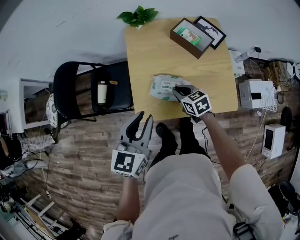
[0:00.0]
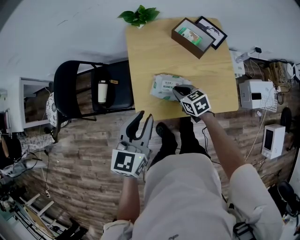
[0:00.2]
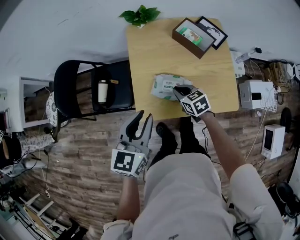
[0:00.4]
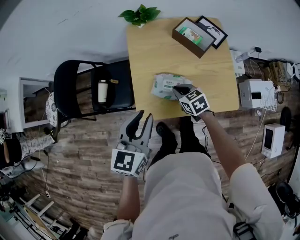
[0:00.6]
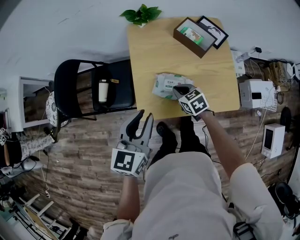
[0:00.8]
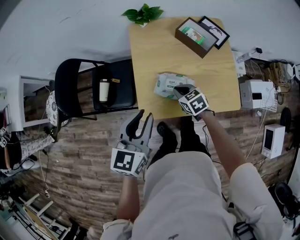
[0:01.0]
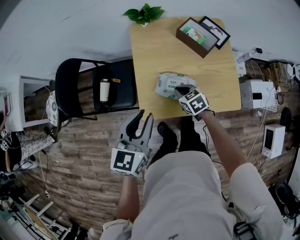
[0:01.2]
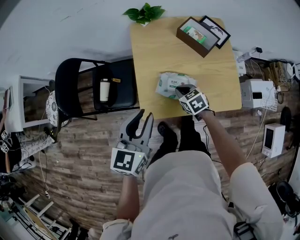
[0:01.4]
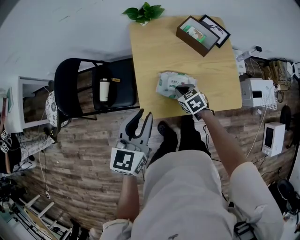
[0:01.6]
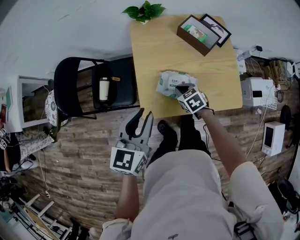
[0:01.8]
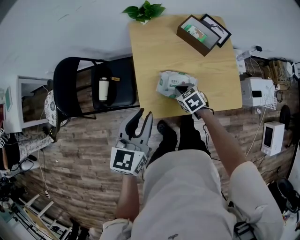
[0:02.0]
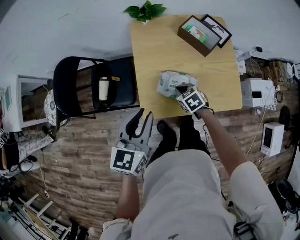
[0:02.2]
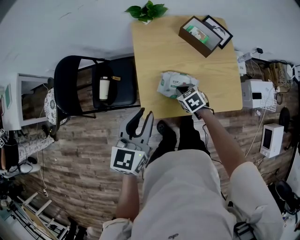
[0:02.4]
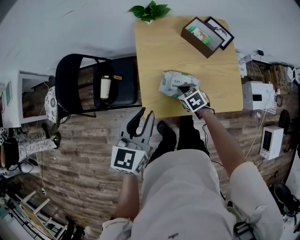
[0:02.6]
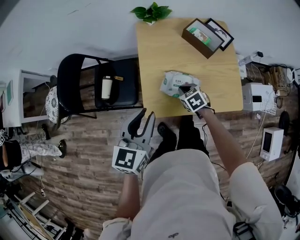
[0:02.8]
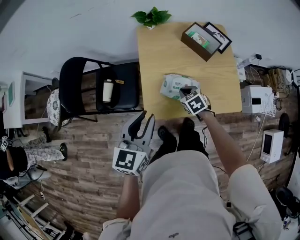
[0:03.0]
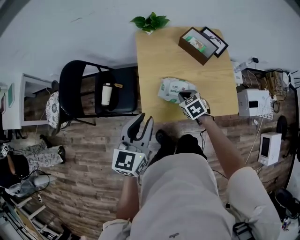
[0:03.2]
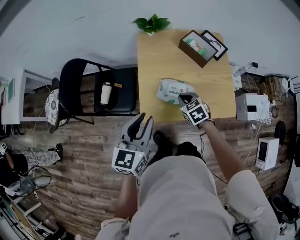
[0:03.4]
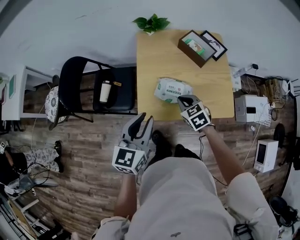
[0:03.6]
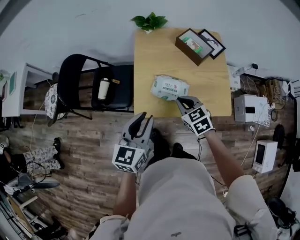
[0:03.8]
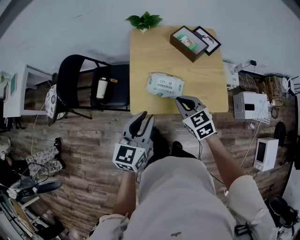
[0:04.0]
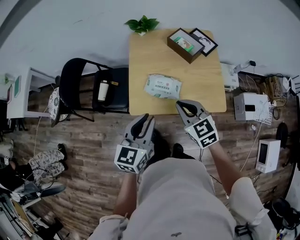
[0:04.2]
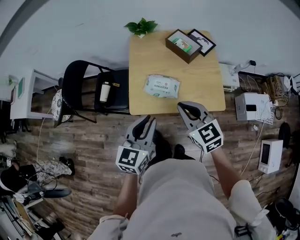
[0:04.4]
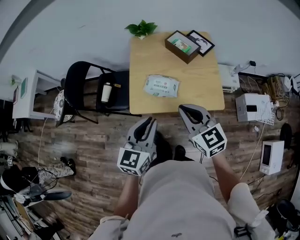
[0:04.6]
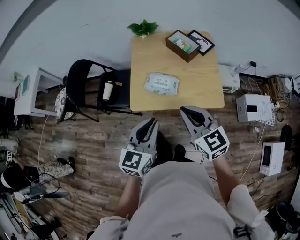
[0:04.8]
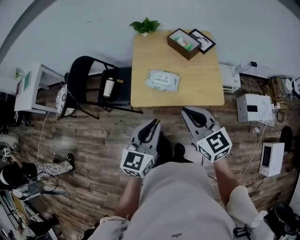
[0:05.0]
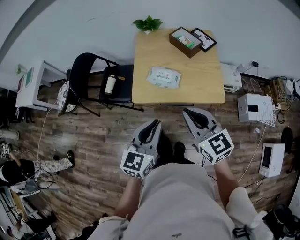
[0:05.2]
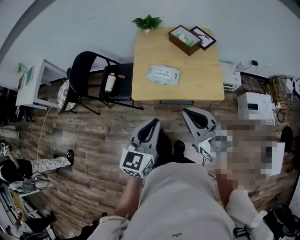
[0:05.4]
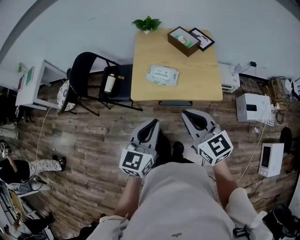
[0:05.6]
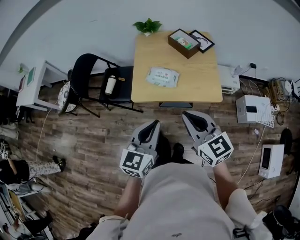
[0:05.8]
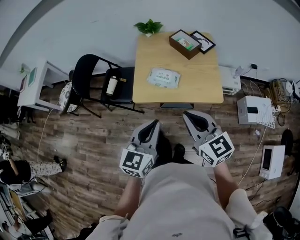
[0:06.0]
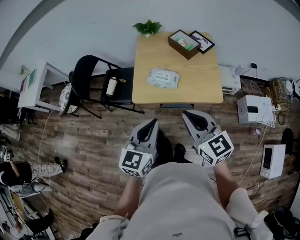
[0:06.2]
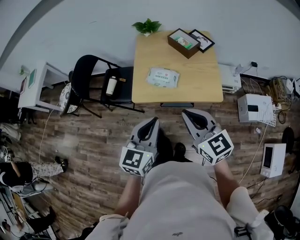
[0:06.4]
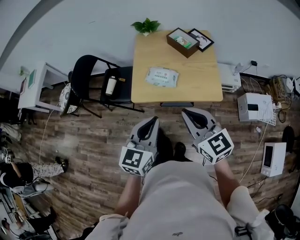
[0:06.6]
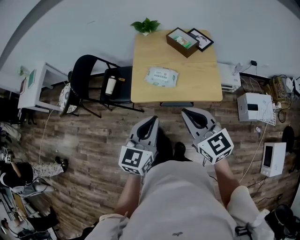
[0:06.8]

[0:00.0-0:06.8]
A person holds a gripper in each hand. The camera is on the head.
0:00.0 to 0:01.4: The grippers stay close to where they were, moving slightly.
0:01.4 to 0:02.8: There are only small adjustments of the grippers.
0:02.8 to 0:04.0: The left gripper is displaced to the right and backward by about 10 cm. Meanwhile the right gripper goes approximately 20 cm upward and backward, and swivels roughly 20 degrees.
0:04.0 to 0:05.4: The right gripper is displaced backward and upward by approximately 25 cm, and changes its angle by roughly 20 degrees. The left gripper heads backward, covering about 15 cm.
0:05.4 to 0:06.8: The grippers stay close to where they were, moving slightly.

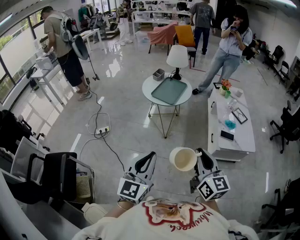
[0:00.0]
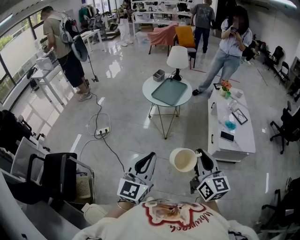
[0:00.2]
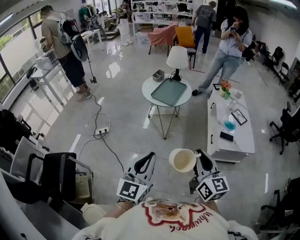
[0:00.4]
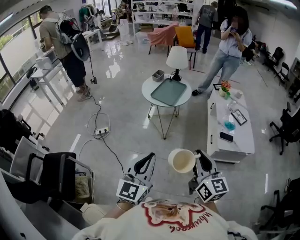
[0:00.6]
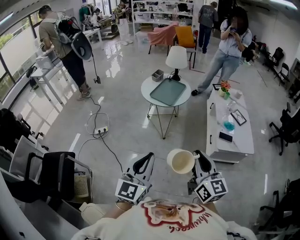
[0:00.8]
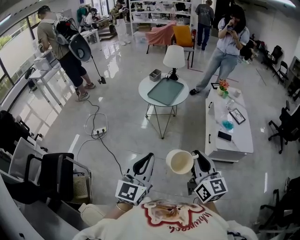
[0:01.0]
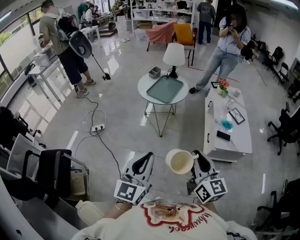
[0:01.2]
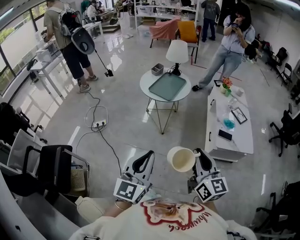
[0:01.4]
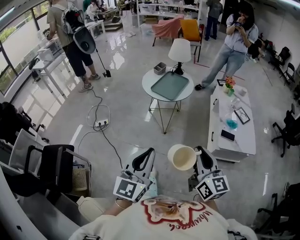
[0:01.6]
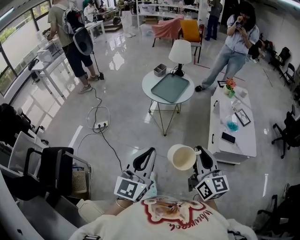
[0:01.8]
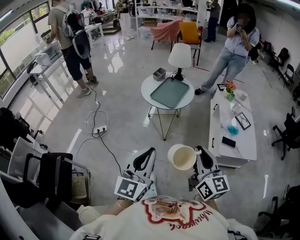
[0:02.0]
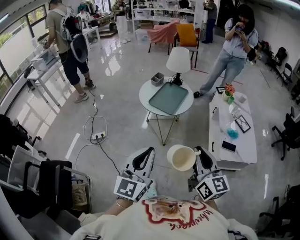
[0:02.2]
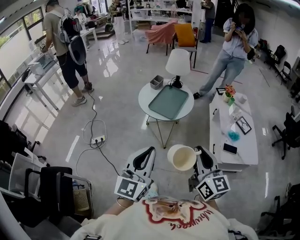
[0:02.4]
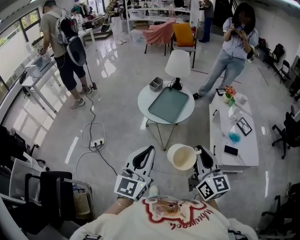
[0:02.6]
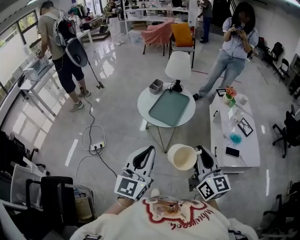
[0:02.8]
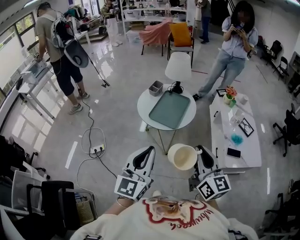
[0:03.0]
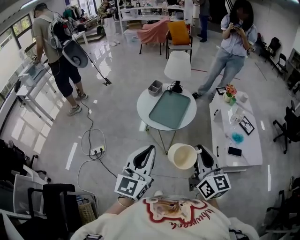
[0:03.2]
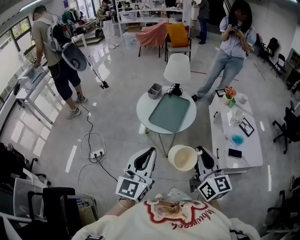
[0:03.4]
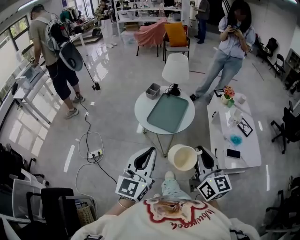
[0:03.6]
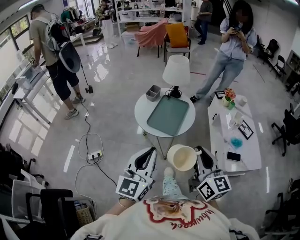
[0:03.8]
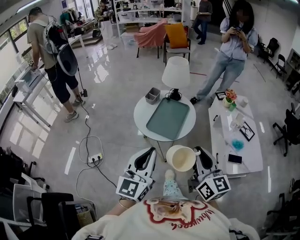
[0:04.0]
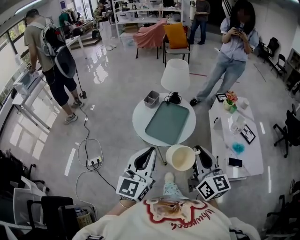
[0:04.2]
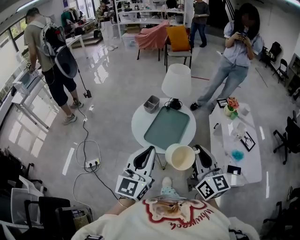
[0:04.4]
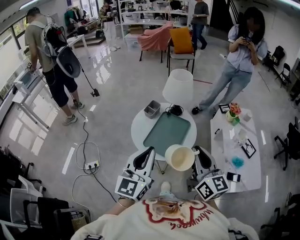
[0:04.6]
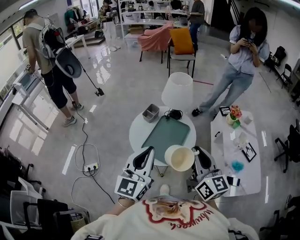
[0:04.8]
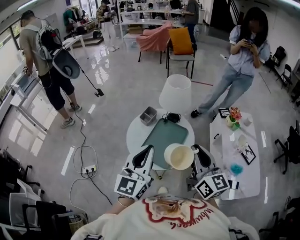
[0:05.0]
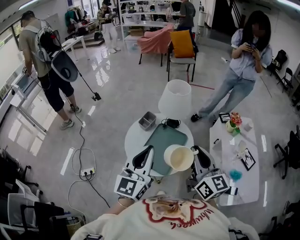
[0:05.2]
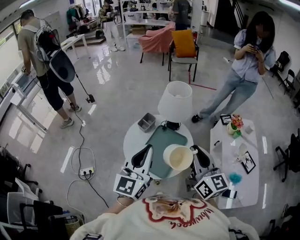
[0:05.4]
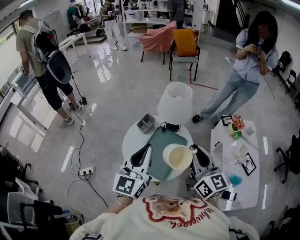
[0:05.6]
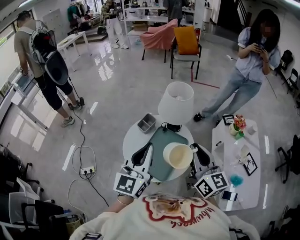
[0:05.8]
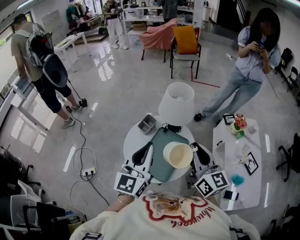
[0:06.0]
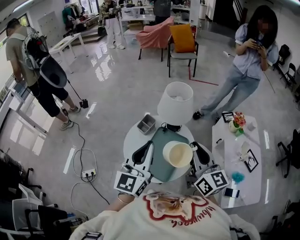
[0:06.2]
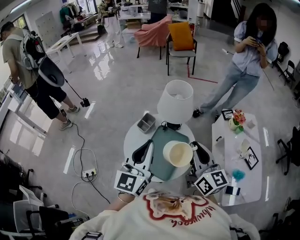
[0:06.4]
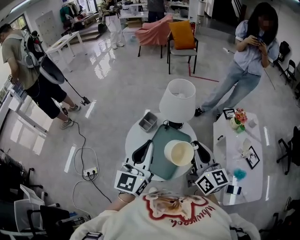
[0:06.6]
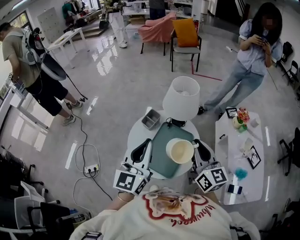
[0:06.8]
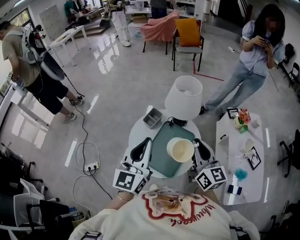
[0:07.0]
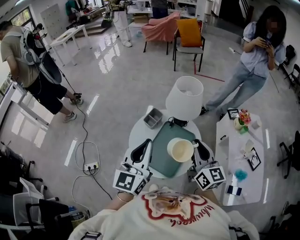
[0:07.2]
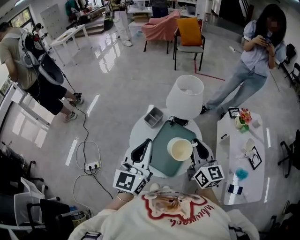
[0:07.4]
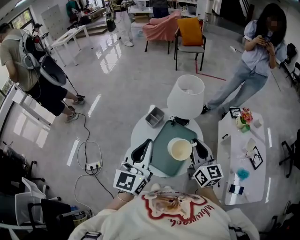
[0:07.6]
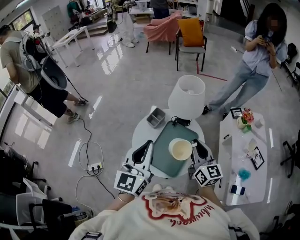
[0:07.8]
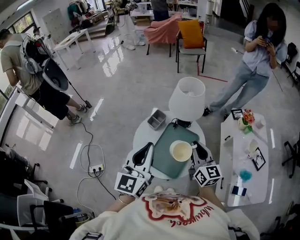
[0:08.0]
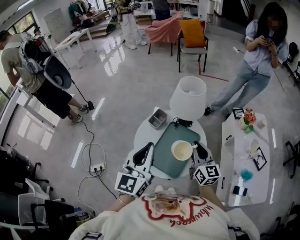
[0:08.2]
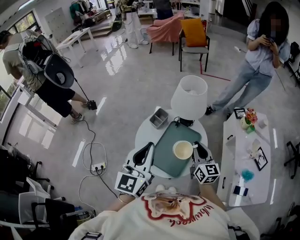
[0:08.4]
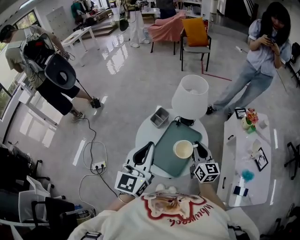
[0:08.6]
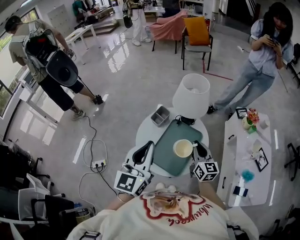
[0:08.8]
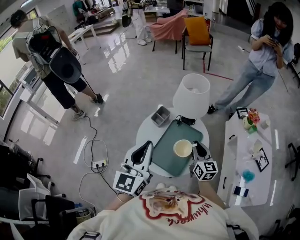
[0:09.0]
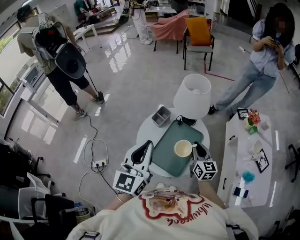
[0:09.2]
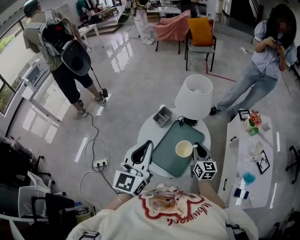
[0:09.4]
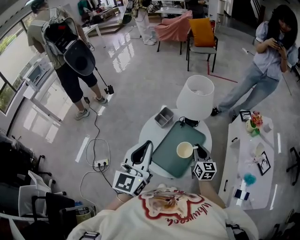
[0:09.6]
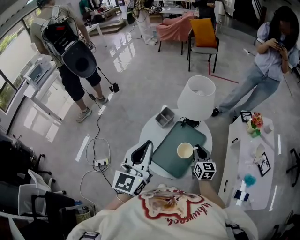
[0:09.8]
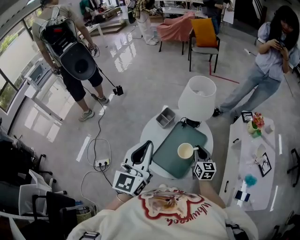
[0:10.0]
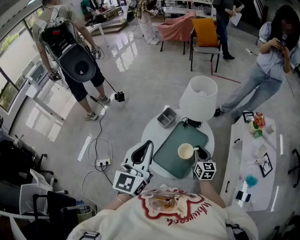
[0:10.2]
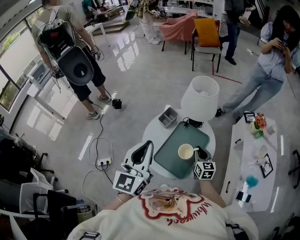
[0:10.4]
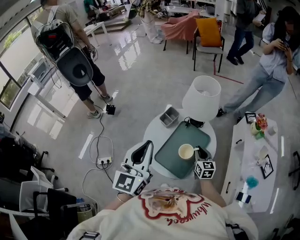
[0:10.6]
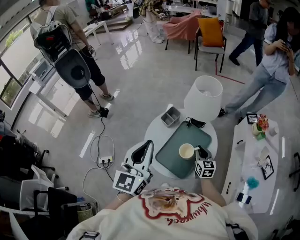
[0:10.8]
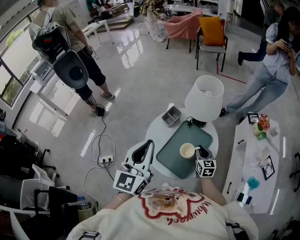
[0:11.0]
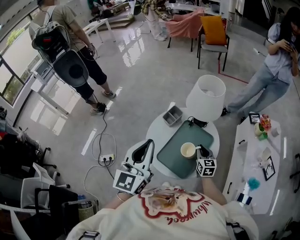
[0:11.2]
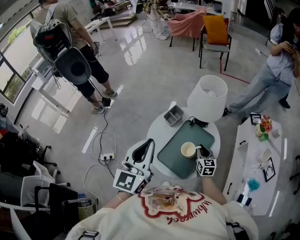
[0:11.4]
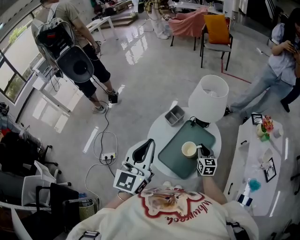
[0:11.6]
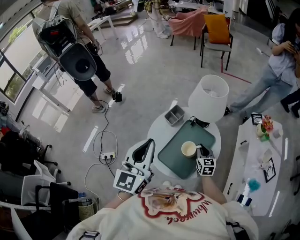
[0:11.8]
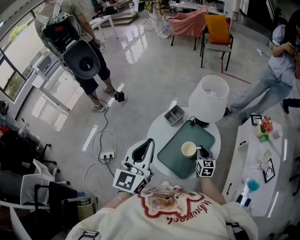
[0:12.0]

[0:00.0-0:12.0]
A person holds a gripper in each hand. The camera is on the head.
0:00.0 to 0:01.6: The grippers make only small movements.
0:01.6 to 0:03.0: The two grippers go about 25 cm forward.
0:03.0 to 0:04.4: Both grippers travel together forward, approximately 15 cm.
0:04.4 to 0:06.0: Both grippers travel together forward, approximately 20 cm.
0:06.0 to 0:07.6: The right gripper heads downward, covering some 10 cm.
0:07.6 to 0:09.0: The right gripper heads downward, covering about 10 cm.
0:09.0 to 0:10.4: The right gripper heads downward, covering about 10 cm.
0:10.4 to 0:12.0: The grippers move only a little.

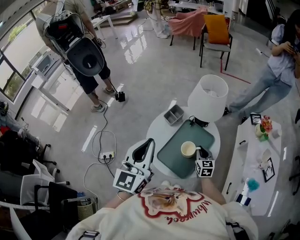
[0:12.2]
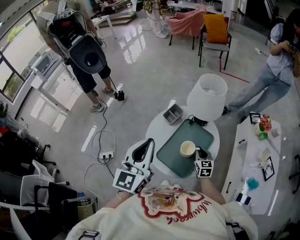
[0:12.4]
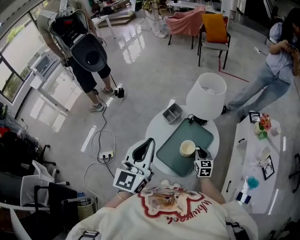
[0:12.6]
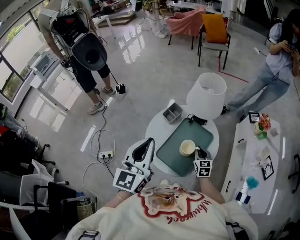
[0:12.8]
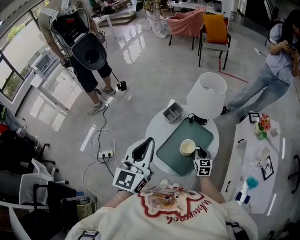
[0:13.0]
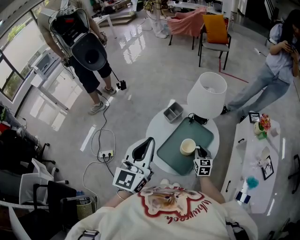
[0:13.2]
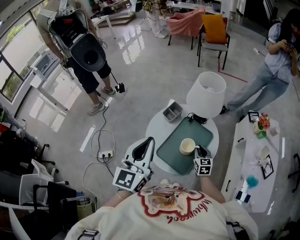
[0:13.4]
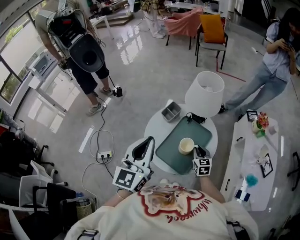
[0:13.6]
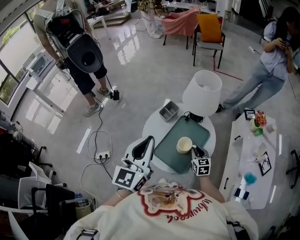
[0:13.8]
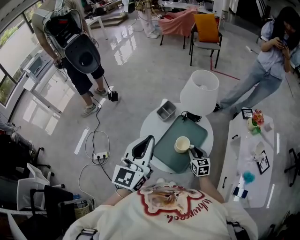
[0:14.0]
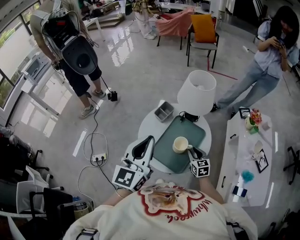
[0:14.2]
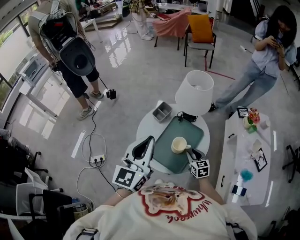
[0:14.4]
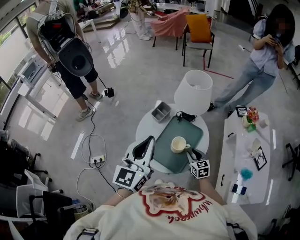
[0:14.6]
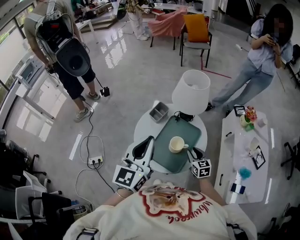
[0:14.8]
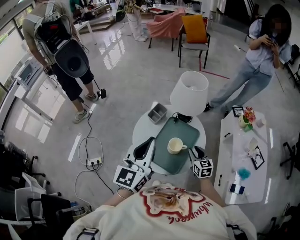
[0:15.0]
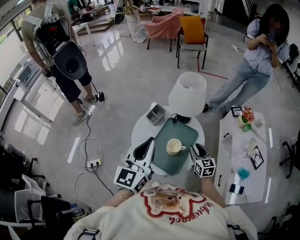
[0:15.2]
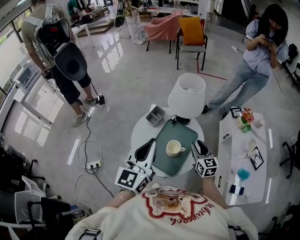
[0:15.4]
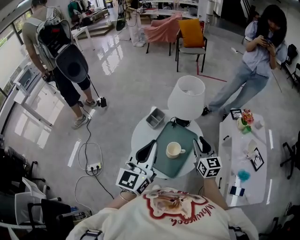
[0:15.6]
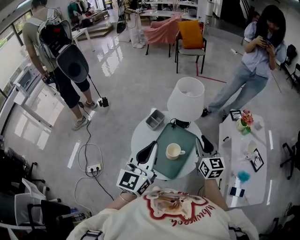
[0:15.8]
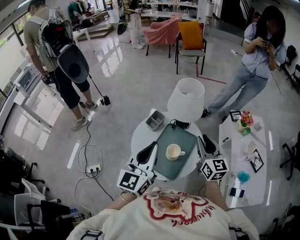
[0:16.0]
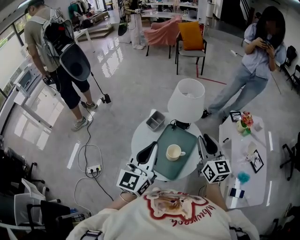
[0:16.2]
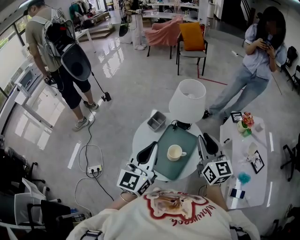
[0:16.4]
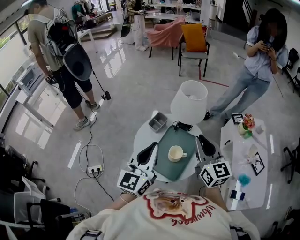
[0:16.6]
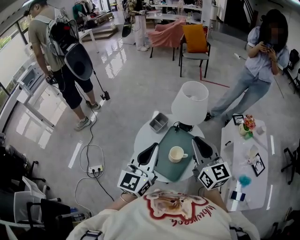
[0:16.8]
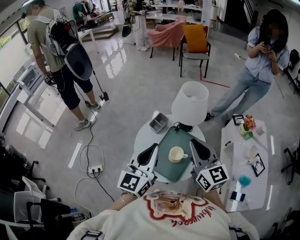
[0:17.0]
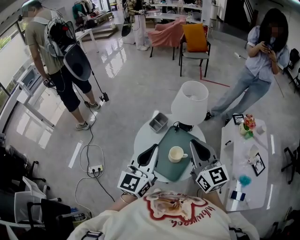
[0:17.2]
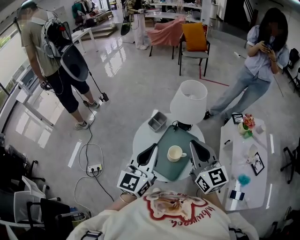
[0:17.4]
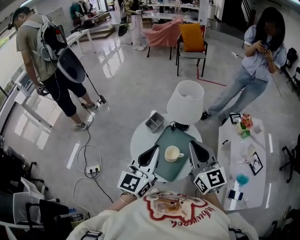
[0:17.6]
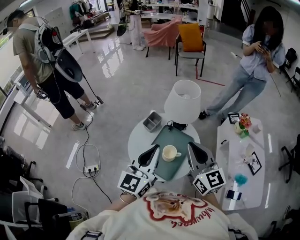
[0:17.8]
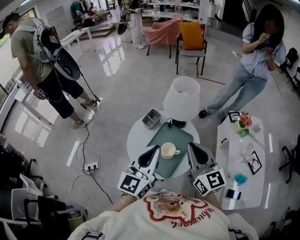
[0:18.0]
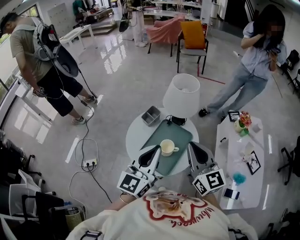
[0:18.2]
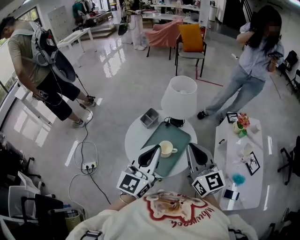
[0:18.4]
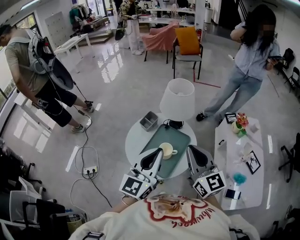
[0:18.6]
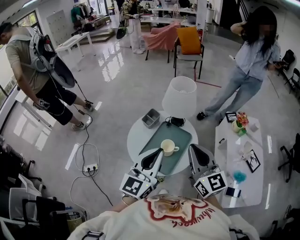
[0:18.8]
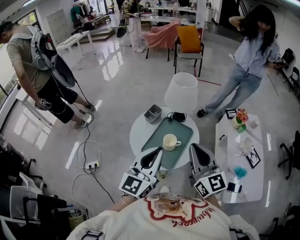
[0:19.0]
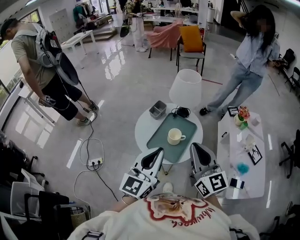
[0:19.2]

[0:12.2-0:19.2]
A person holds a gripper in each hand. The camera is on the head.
0:12.2 to 0:13.6: The grippers make only small movements.
0:13.6 to 0:15.0: The right gripper shifts by roughly 5 cm.
0:15.0 to 0:16.4: The right gripper is displaced upward by some 25 cm, and swivels roughly 30 degrees.
0:16.4 to 0:17.8: The right gripper moves approximately 5 cm.
0:17.8 to 0:19.2: Both grippers travel together backward, roughly 15 cm.
